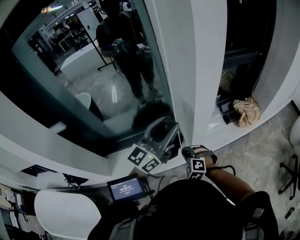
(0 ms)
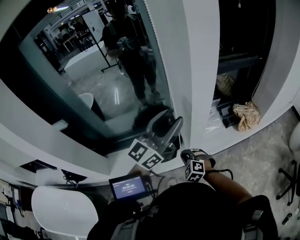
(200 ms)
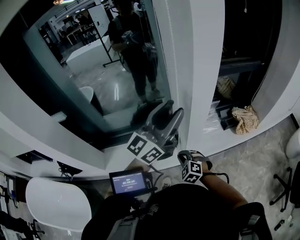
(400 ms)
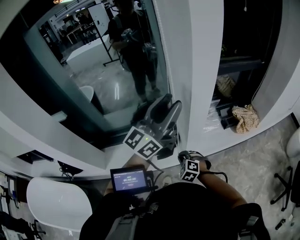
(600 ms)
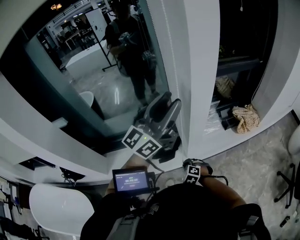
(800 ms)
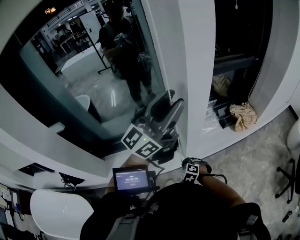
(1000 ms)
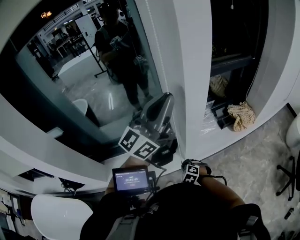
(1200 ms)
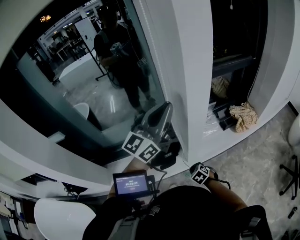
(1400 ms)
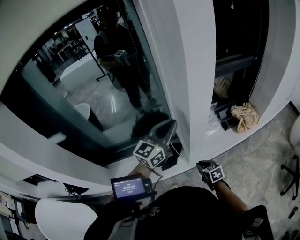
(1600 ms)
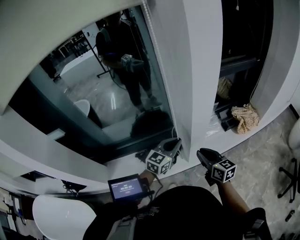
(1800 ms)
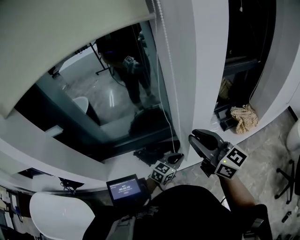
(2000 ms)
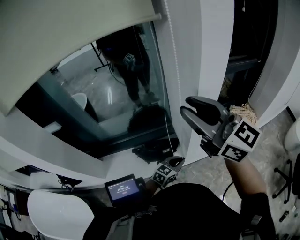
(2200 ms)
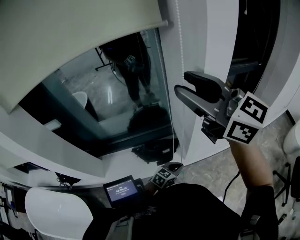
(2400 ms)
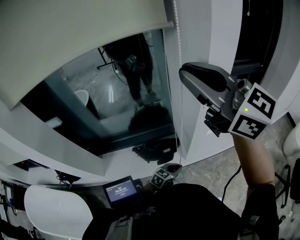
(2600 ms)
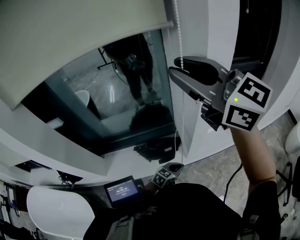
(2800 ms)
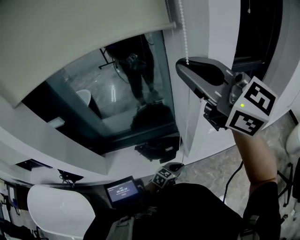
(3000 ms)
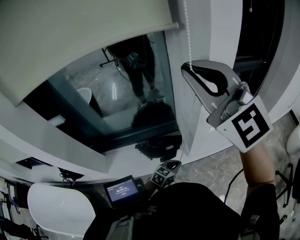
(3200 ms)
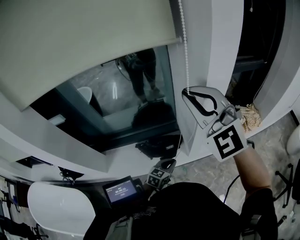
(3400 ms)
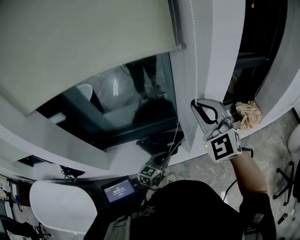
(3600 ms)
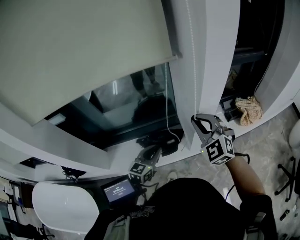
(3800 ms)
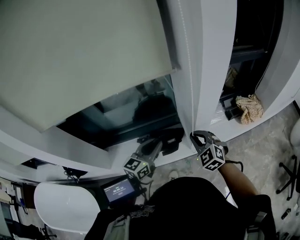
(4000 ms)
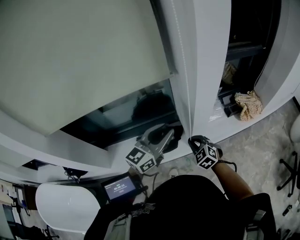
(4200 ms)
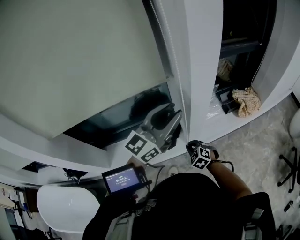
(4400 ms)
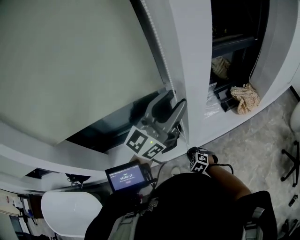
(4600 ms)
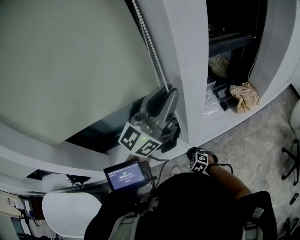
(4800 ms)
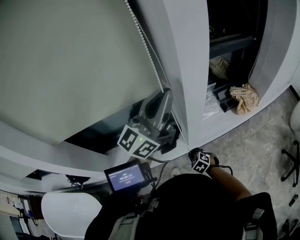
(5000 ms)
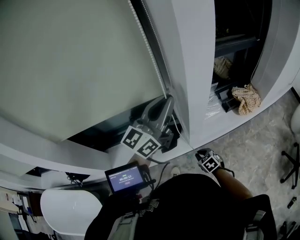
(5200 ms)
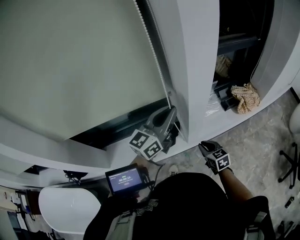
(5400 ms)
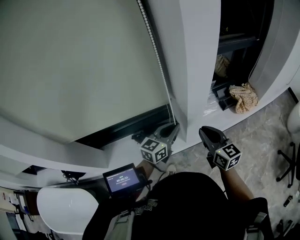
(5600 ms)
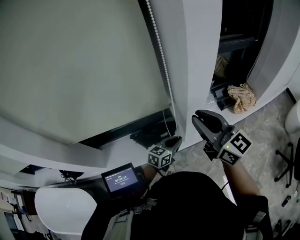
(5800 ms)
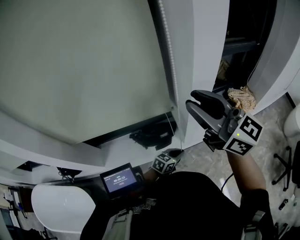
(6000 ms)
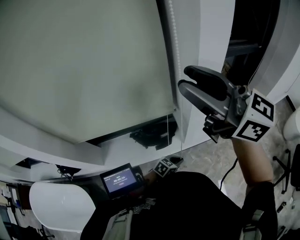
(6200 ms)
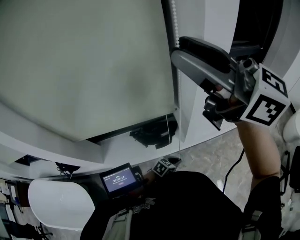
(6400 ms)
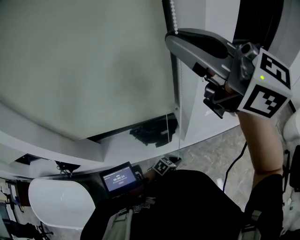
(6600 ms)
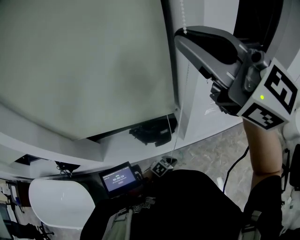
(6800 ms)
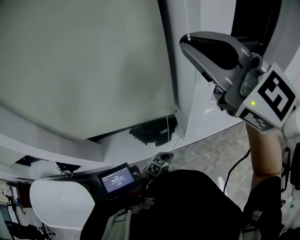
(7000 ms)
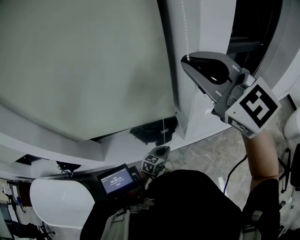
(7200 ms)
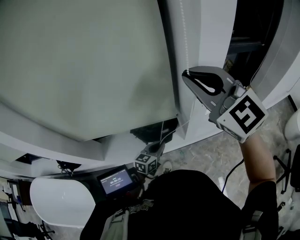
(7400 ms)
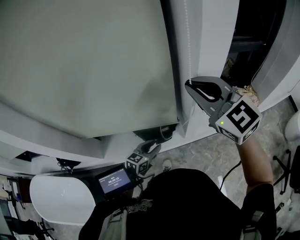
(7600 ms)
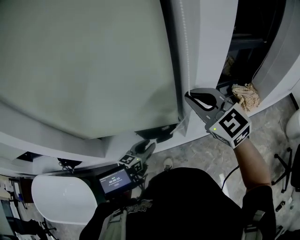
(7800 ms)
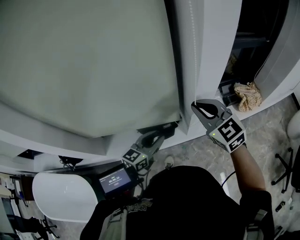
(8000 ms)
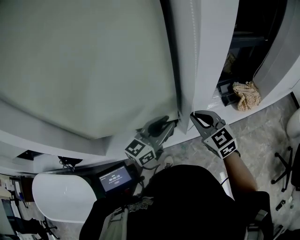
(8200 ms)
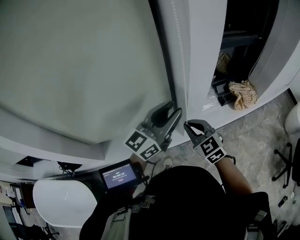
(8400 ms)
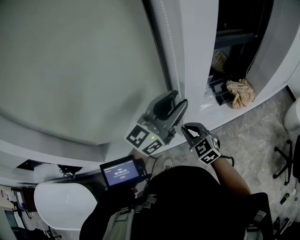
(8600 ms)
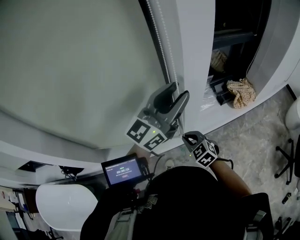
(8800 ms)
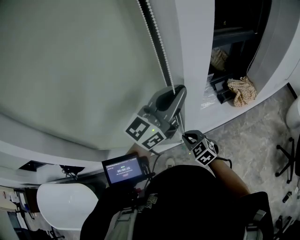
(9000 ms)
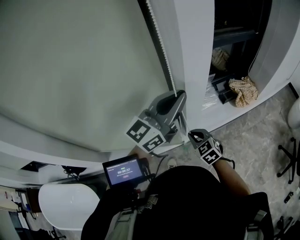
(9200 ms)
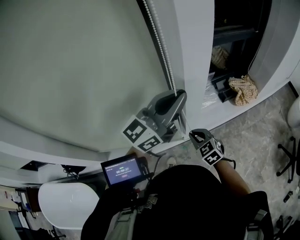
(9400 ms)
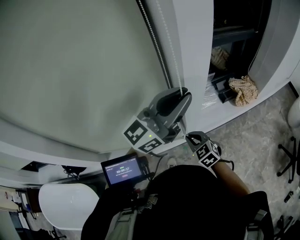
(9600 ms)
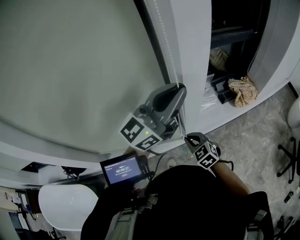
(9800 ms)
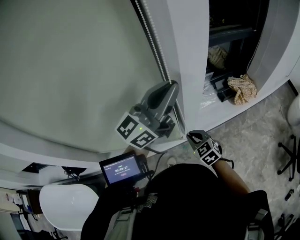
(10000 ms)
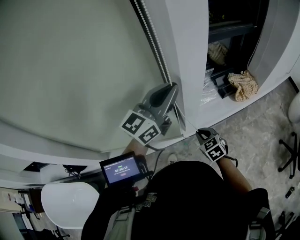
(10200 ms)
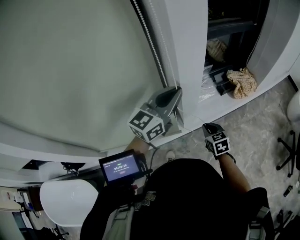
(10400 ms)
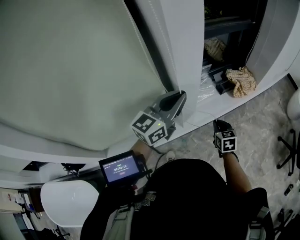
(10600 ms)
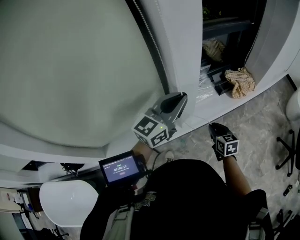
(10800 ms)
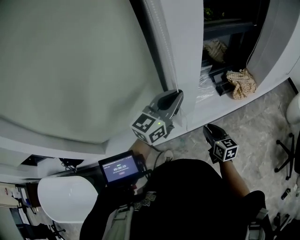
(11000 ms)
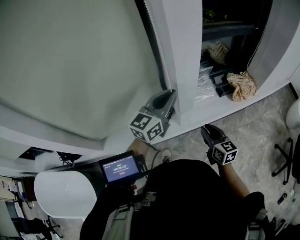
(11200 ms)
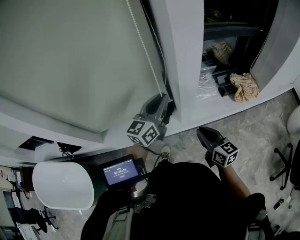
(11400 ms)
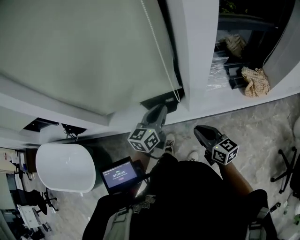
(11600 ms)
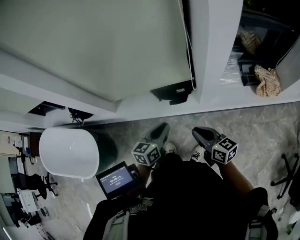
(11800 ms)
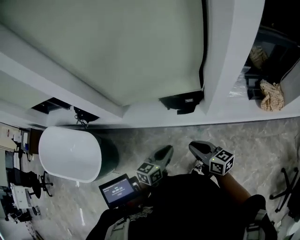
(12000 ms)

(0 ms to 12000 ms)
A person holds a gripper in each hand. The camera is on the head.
0 ms - 1600 ms: The right gripper shifts some 15 cm to the right and downward, and rotates around the line of its fingers by about 70 degrees, clockwise from behind. The left gripper moves forward, approximately 5 cm, moves some 10 cm upward and comes back, and closes up.
1600 ms - 3000 ms: The left gripper moves downward and backward, about 35 cm, and points its fingers about 40 degrees further downward, while the right gripper shifts about 60 cm upward, tips its fingers upward by some 60 degrees, and opens and closes again.
3000 ms - 4400 ms: The left gripper heads upward, covering approximately 40 cm, tips its fingers upward by about 50 degrees, and opens up; the right gripper shifts roughly 60 cm downward, and points its fingers roughly 60 degrees further downward.
4400 ms - 6000 ms: The right gripper moves upward, some 40 cm, tilts its fingers roughly 60 degrees upward, and opens. The left gripper travels downward by roughly 40 cm, tips its fingers downward by some 50 degrees, and closes up.
6000 ms - 7600 ms: The left gripper ends up roughly 15 cm from where it was, and opens its fingers. The right gripper travels upward and back again, approximately 15 cm each way, turns by about 30 degrees, and closes its fingers.
7600 ms - 9000 ms: The left gripper travels upward and to the right by some 35 cm, angles its fingers upward, by about 50 degrees, and closes up. The right gripper shifts some 35 cm downward, and tilts its fingers approximately 30 degrees downward.
9000 ms - 10400 ms: The left gripper travels downward by some 10 cm; the right gripper is displaced to the right by roughly 10 cm, and turns by roughly 30 degrees.
10400 ms - 12000 ms: The left gripper shifts by roughly 40 cm, and changes its angle by some 50 degrees; the right gripper shifts by roughly 25 cm, and changes its angle by approximately 50 degrees.

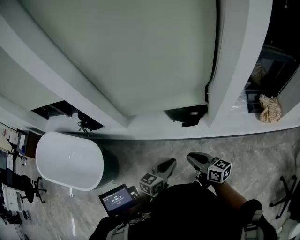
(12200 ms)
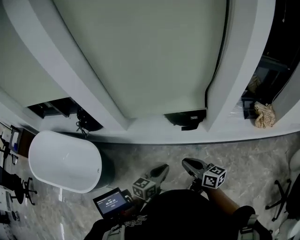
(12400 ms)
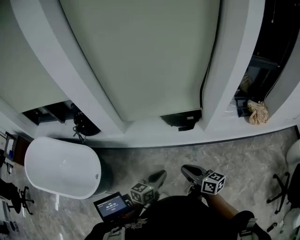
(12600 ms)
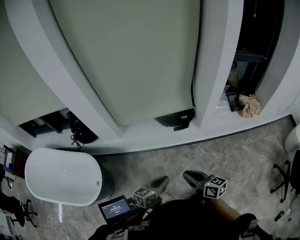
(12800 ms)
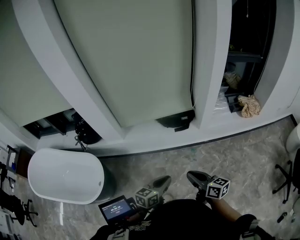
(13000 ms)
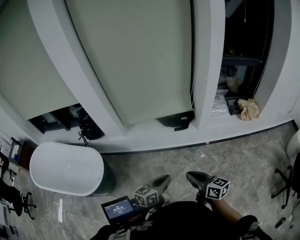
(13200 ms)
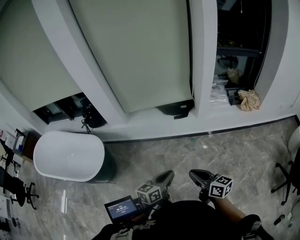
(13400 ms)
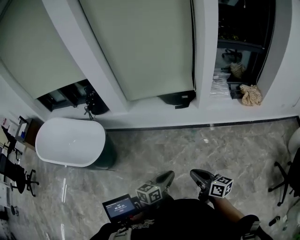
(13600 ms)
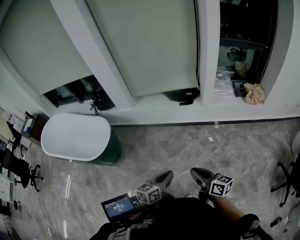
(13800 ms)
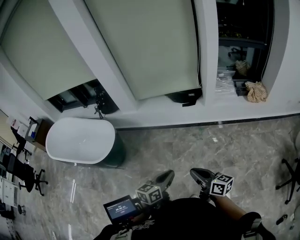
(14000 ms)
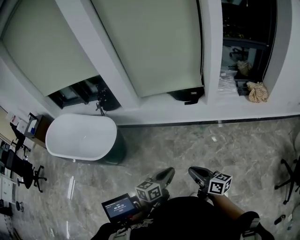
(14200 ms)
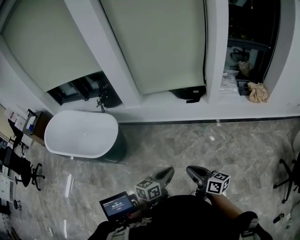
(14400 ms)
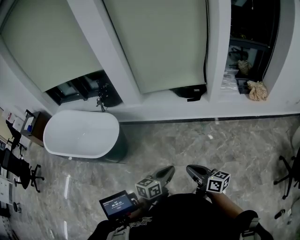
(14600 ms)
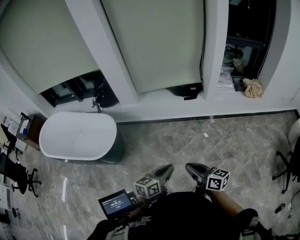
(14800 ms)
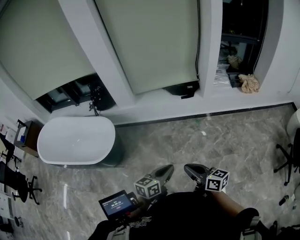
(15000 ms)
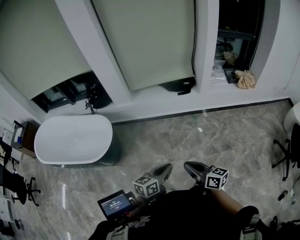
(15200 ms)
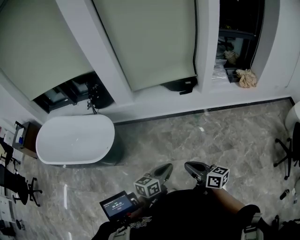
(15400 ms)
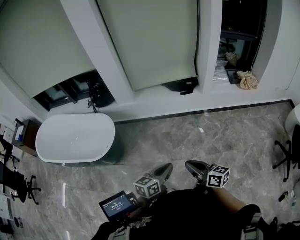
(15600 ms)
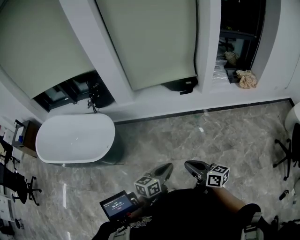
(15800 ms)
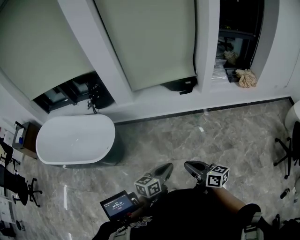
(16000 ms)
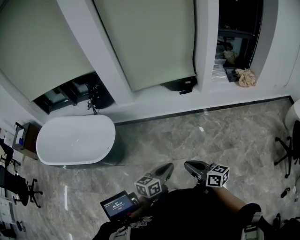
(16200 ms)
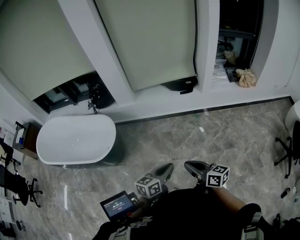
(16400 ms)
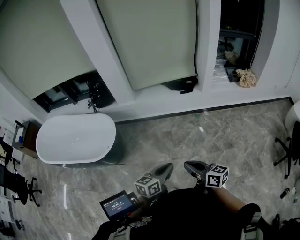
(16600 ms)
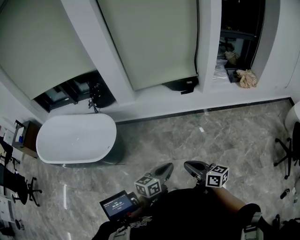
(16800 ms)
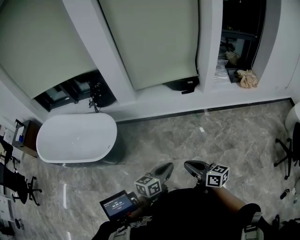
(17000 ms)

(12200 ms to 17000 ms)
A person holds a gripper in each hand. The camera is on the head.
12200 ms - 13800 ms: The two grippers go about 40 cm backward.
13800 ms - 15400 ms: Both grippers travel together to the left, approximately 15 cm.
15400 ms - 17000 ms: There are only small adjustments of the grippers.

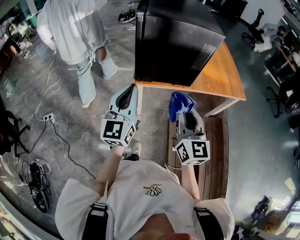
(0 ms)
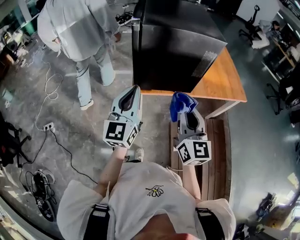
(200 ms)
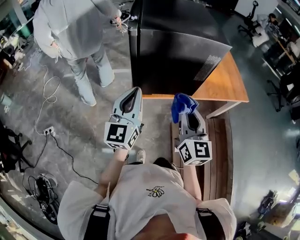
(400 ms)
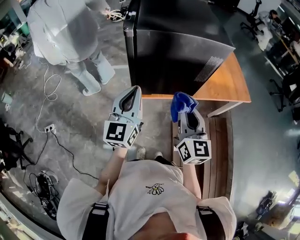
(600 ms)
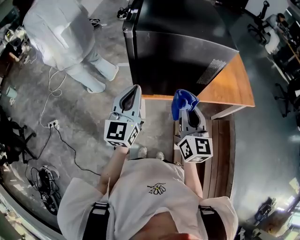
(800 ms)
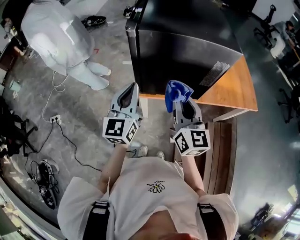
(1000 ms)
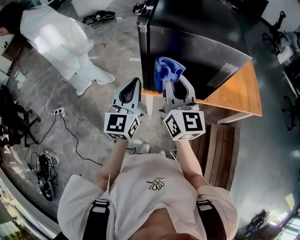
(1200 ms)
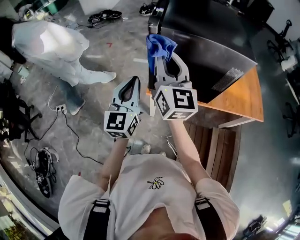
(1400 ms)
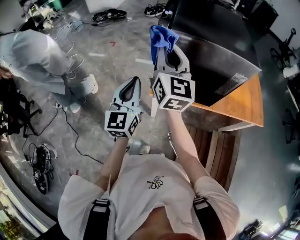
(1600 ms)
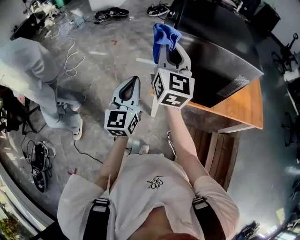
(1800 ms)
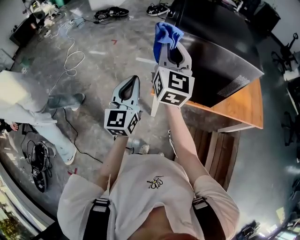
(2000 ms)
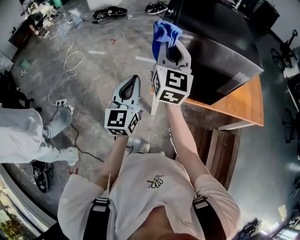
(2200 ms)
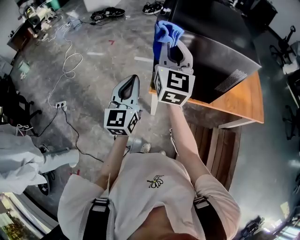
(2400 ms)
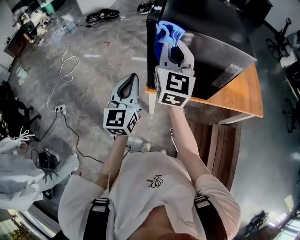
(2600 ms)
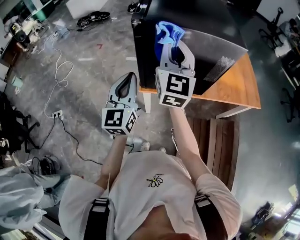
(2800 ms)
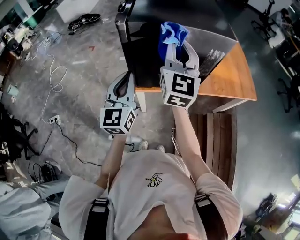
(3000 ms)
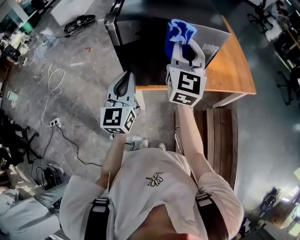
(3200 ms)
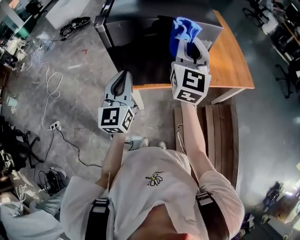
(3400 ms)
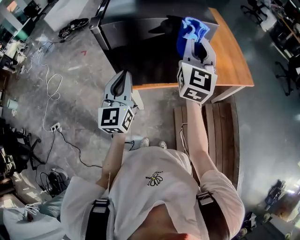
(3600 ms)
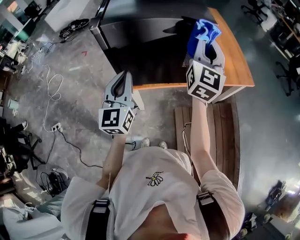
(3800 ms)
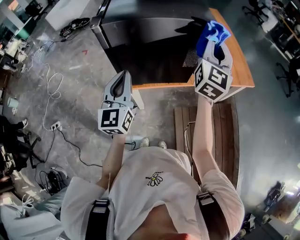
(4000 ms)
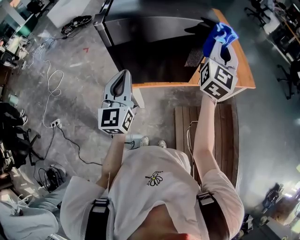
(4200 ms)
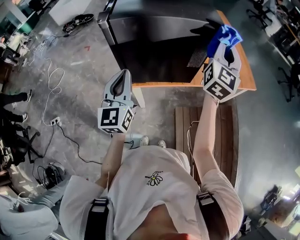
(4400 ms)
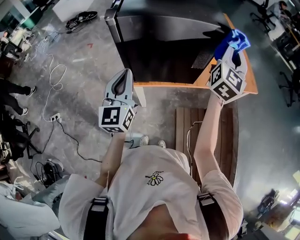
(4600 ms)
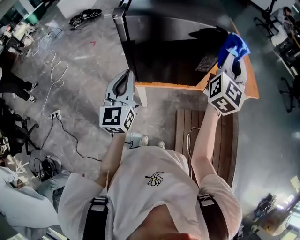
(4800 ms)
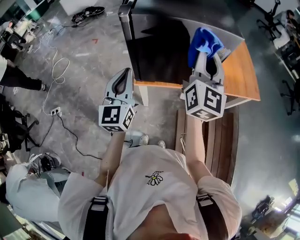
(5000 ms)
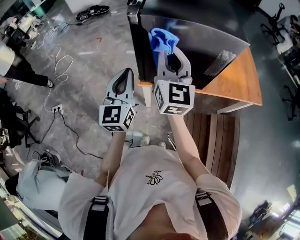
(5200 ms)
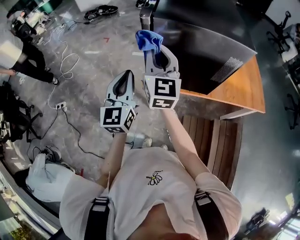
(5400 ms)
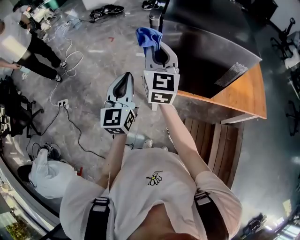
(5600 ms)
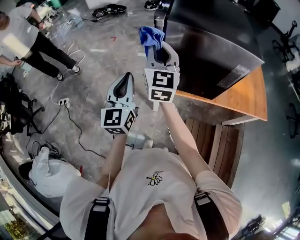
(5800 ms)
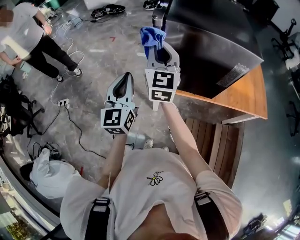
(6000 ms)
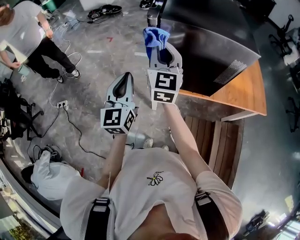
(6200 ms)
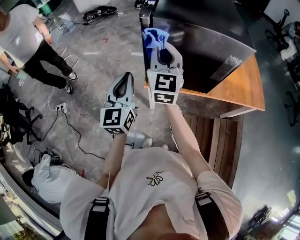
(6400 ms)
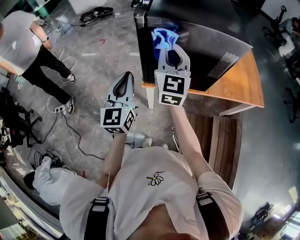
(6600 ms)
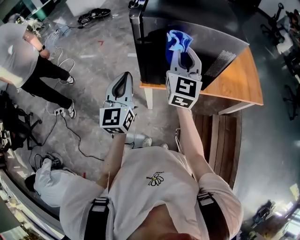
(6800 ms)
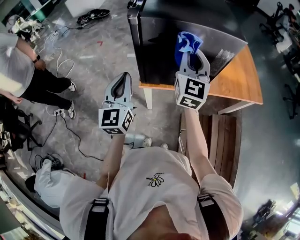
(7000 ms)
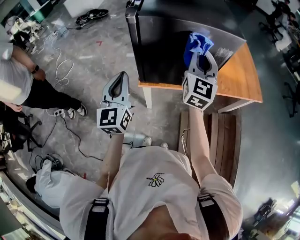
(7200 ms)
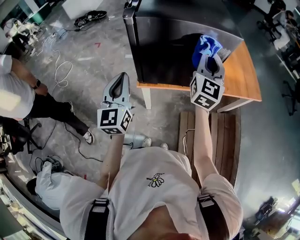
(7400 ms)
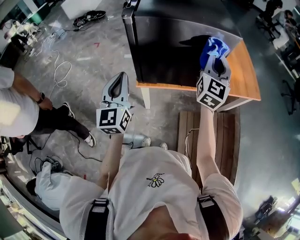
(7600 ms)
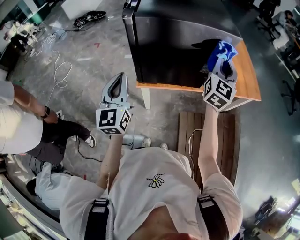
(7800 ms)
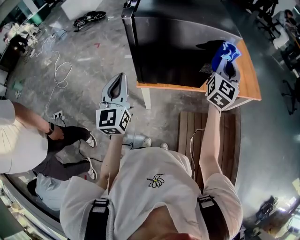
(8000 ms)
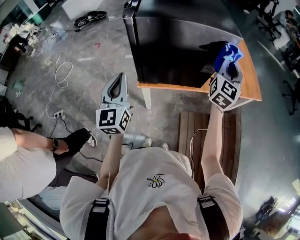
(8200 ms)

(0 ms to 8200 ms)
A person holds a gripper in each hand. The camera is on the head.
0 ms - 1600 ms: The left gripper goes some 15 cm forward and to the left; the right gripper goes about 35 cm forward, to the left and upward.
1600 ms - 3200 ms: The right gripper is displaced to the right by some 20 cm, and changes its angle by approximately 30 degrees; the left gripper moves to the right, approximately 10 cm.
3200 ms - 5000 ms: The right gripper reaches roughly 20 cm to the right, then returns.
5000 ms - 6600 ms: The right gripper heads to the left, covering some 15 cm.
6600 ms - 8200 ms: The right gripper shifts approximately 30 cm to the right, and turns by approximately 30 degrees.
